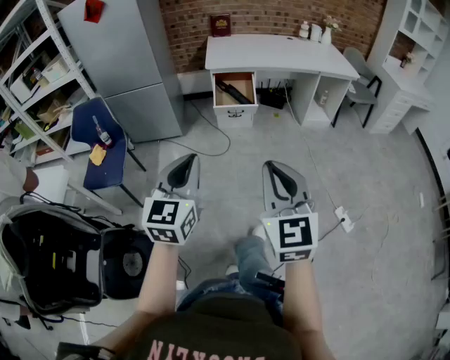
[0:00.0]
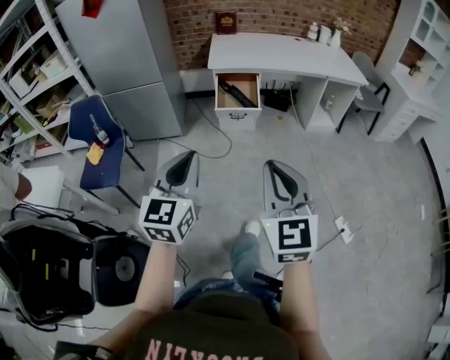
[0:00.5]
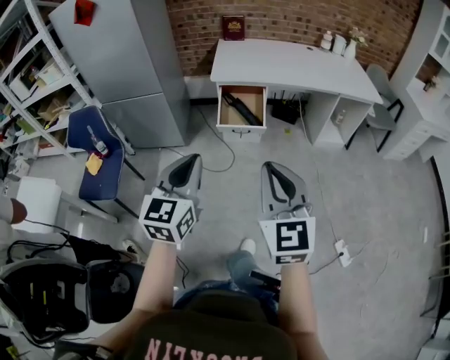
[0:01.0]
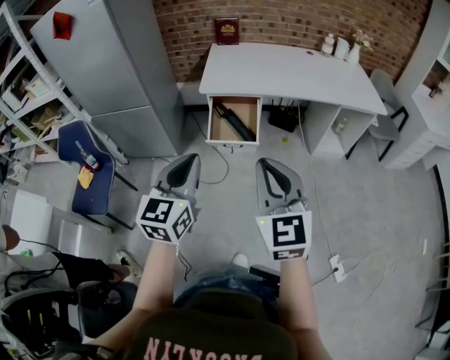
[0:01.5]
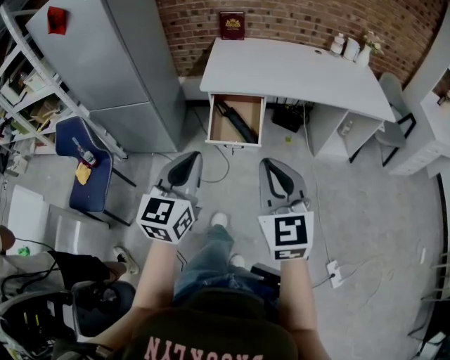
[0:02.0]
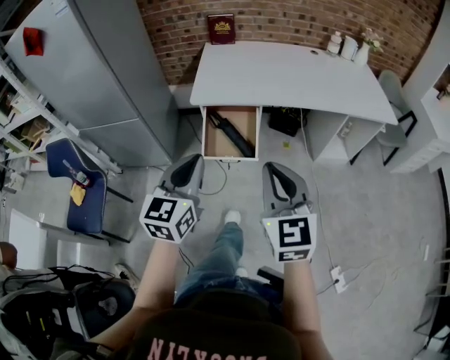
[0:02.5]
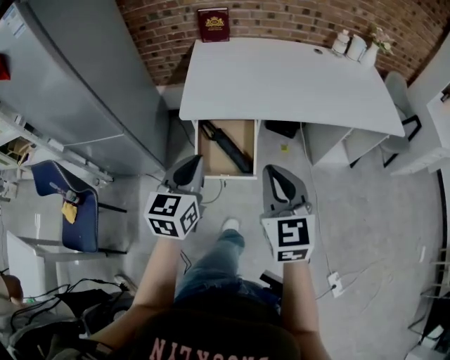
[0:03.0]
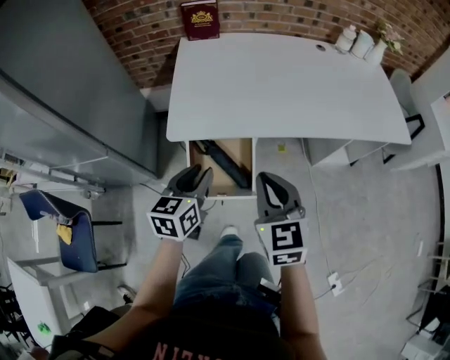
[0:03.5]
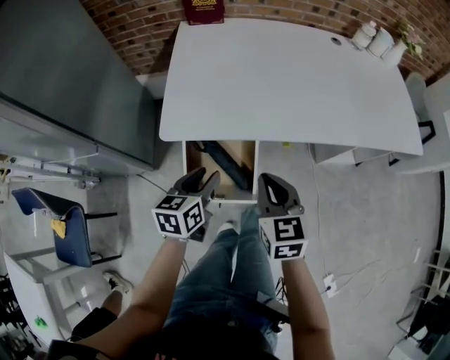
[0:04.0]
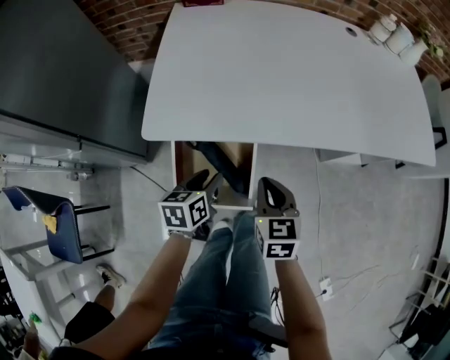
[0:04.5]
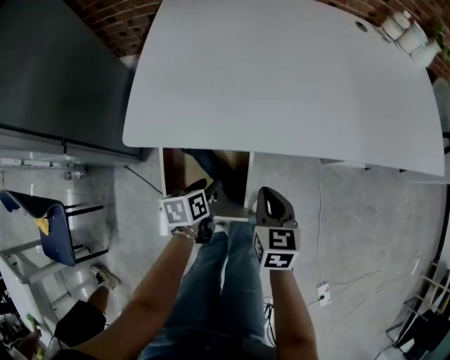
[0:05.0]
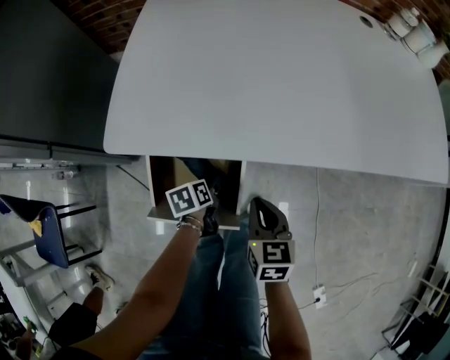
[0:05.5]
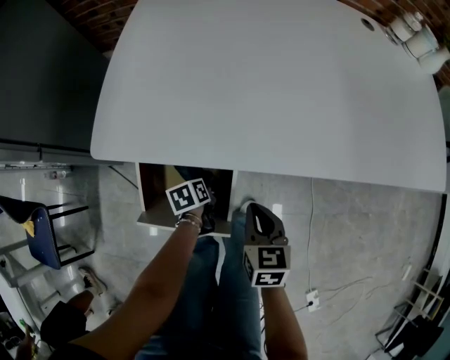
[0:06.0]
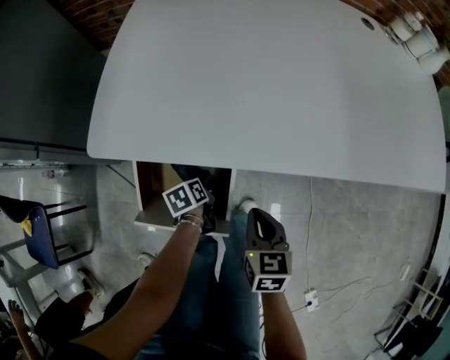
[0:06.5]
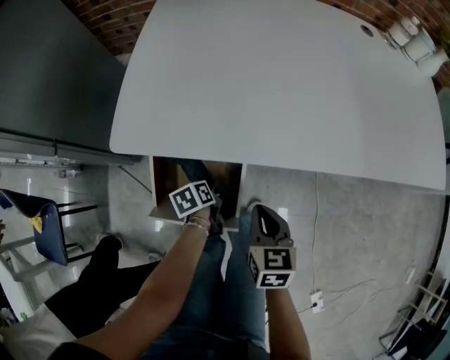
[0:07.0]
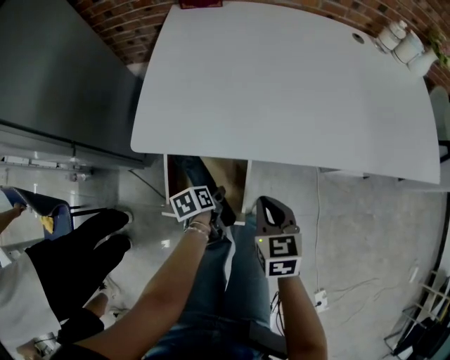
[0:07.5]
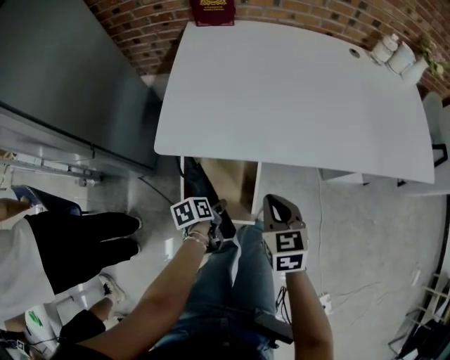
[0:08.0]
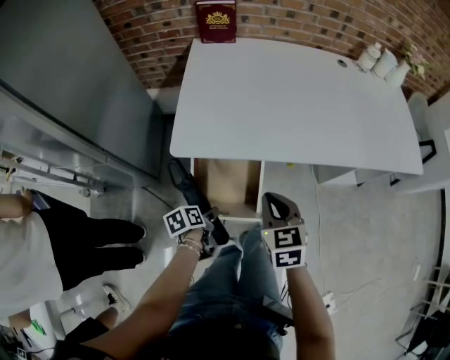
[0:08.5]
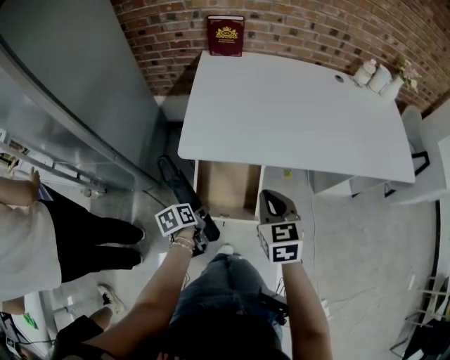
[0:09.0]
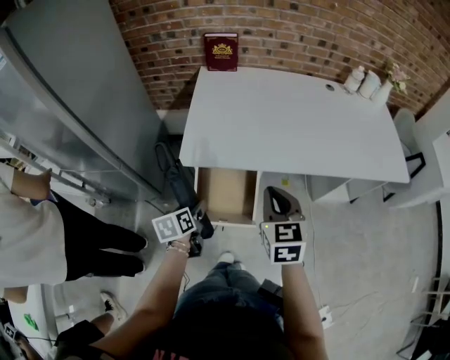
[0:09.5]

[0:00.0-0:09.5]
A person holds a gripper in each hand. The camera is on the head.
0:00.0 to 0:02.0: Both grippers travel together forward, about 40 cm.
0:02.0 to 0:04.0: The pair of grippers is taken forward, some 40 cm. Both grippers move downward, roughly 25 cm. The left gripper swivels some 40 degrees, and opens up. The right gripper turns by approximately 30 degrees.
0:04.0 to 0:05.5: Both grippers move downward, some 25 cm. The left gripper turns by approximately 40 degrees, and opens its fingers.
0:05.5 to 0:07.5: Both grippers travel together upward, about 5 cm.
0:07.5 to 0:09.5: The right gripper is displaced upward by roughly 20 cm, while the left gripper travels upward and to the left by about 25 cm, and swivels about 30 degrees.

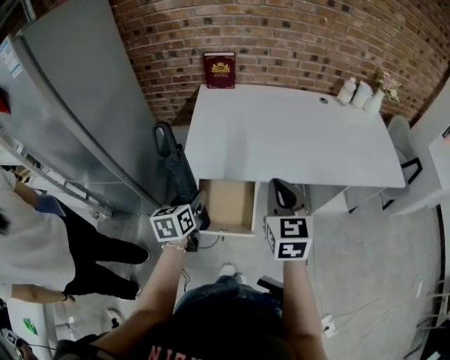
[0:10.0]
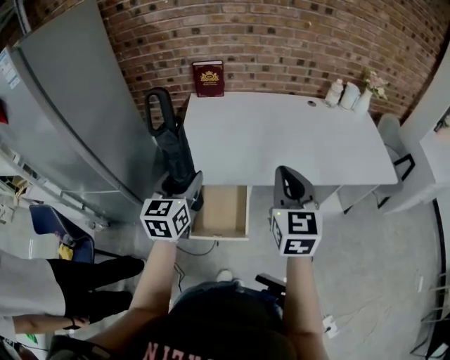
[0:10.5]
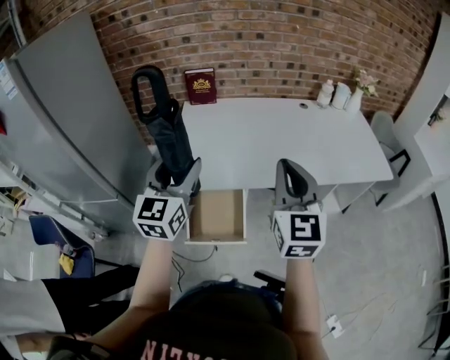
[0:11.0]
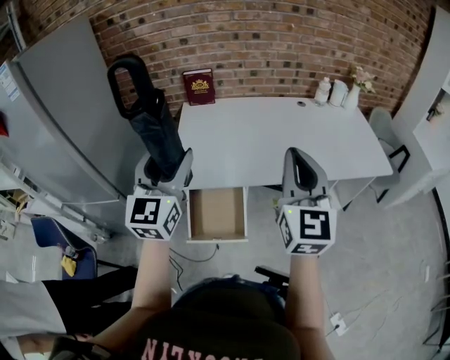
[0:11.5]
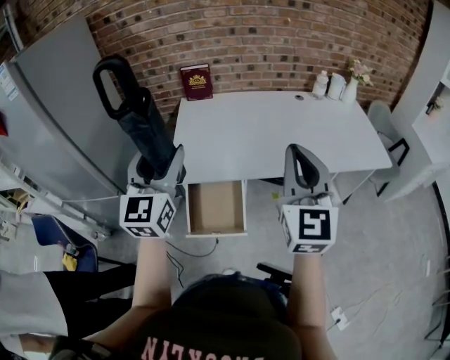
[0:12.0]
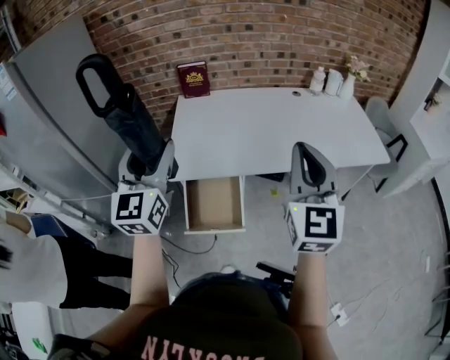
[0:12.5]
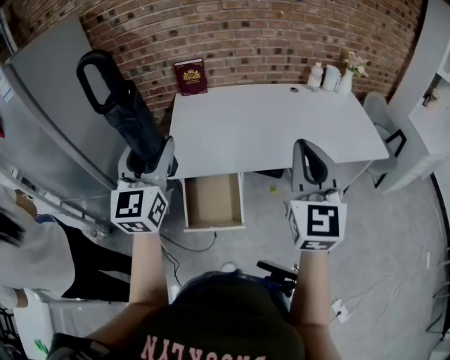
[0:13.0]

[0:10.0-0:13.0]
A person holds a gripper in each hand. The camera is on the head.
0:10.0 to 0:11.5: The right gripper moves upward and to the right, about 15 cm, and swivels about 30 degrees. The left gripper travels upward by some 25 cm, and tips its fingers upward by roughly 40 degrees.
0:11.5 to 0:13.0: The grippers move only a little.

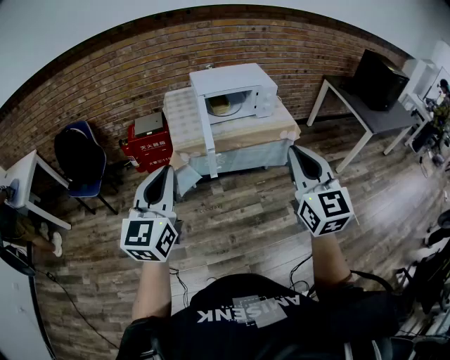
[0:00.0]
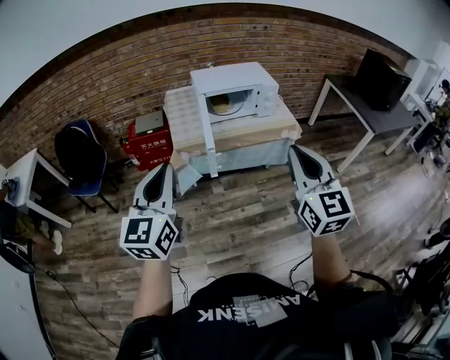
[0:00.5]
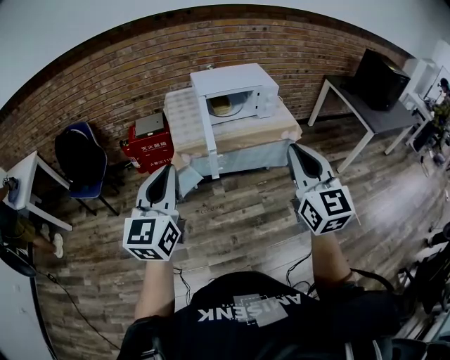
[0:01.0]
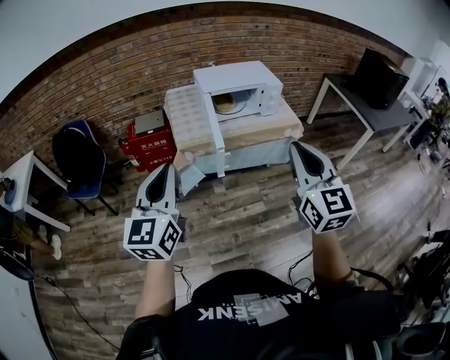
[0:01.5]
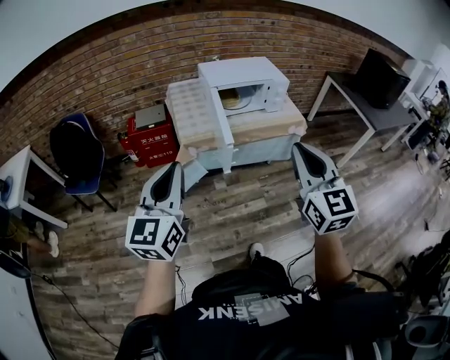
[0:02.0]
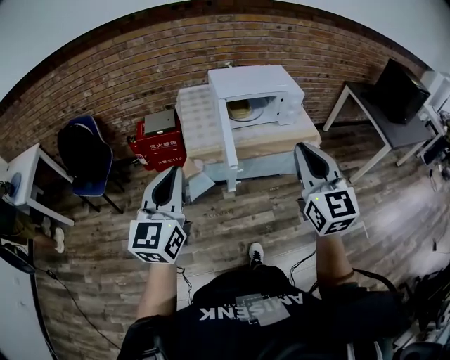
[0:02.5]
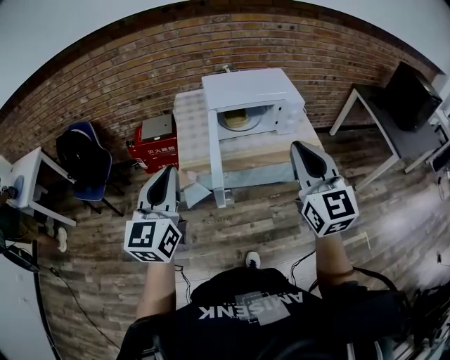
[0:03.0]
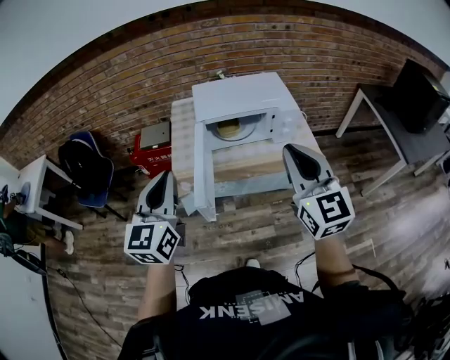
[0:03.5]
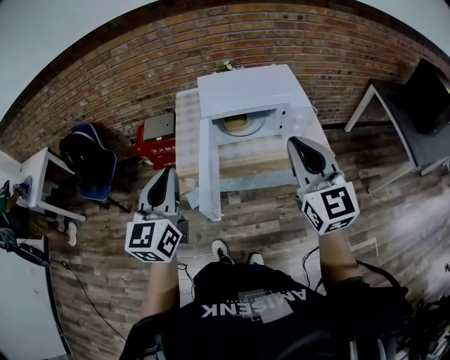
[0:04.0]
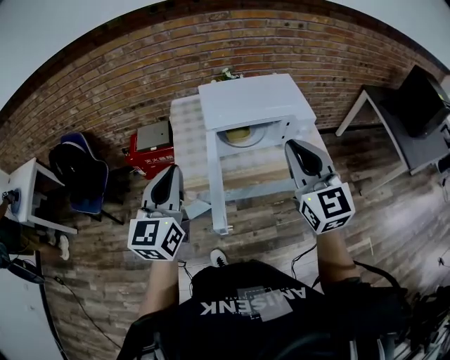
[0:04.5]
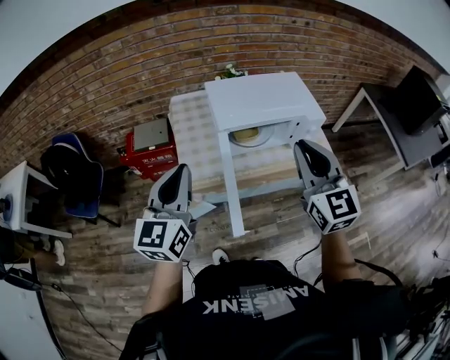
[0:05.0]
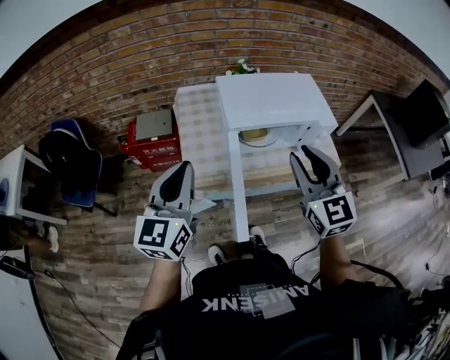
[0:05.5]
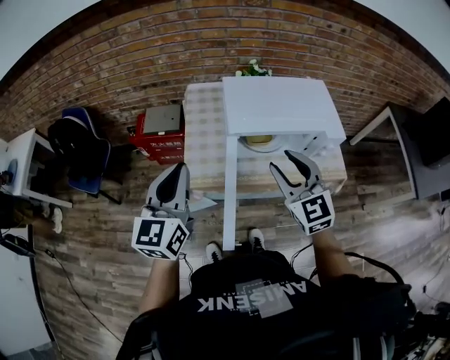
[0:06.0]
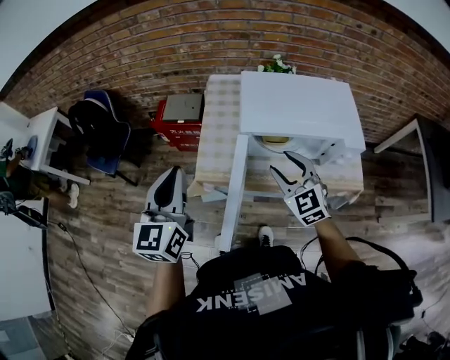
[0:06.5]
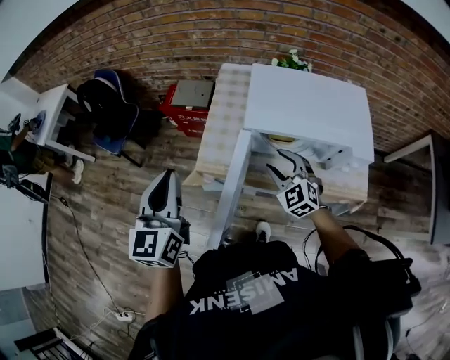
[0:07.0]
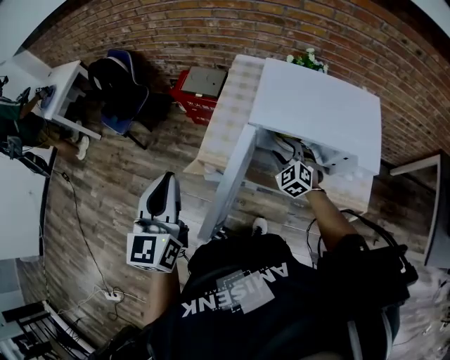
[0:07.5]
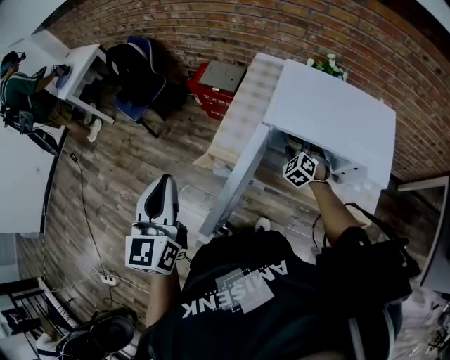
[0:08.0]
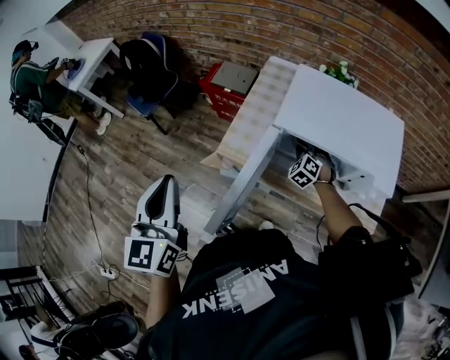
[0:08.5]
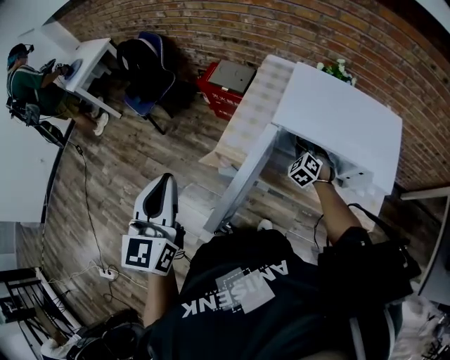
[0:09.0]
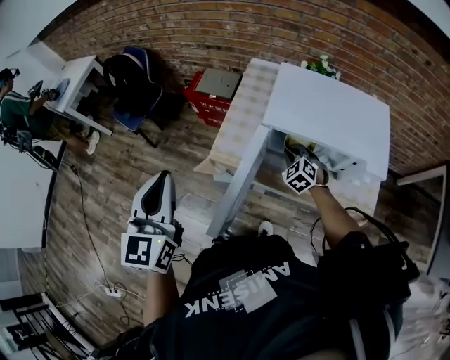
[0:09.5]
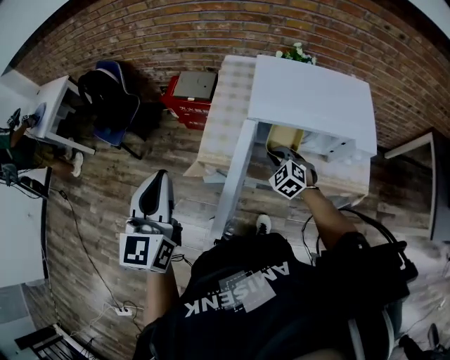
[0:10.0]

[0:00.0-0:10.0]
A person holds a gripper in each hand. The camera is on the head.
0:00.0 to 0:02.0: Both grippers travel together to the left, approximately 10 cm.
0:02.0 to 0:04.0: Both grippers move forward and to the right, about 35 cm.
0:04.0 to 0:06.0: The left gripper travels forward and to the left by some 15 cm. Meanwhile the right gripper is displaced forward, to the left and downward by about 25 cm, and opens its fingers.
0:06.0 to 0:08.0: The right gripper goes approximately 35 cm downward and forward, and tilts its fingers roughly 30 degrees downward; the left gripper travels backward by roughly 10 cm, and turns by some 40 degrees.
0:08.0 to 0:10.0: The right gripper shifts approximately 10 cm backward and to the left, and closes.

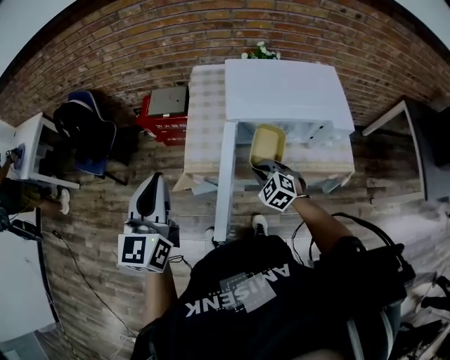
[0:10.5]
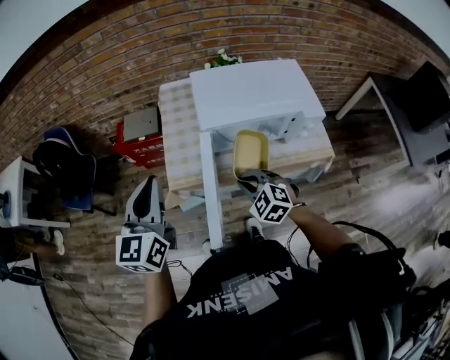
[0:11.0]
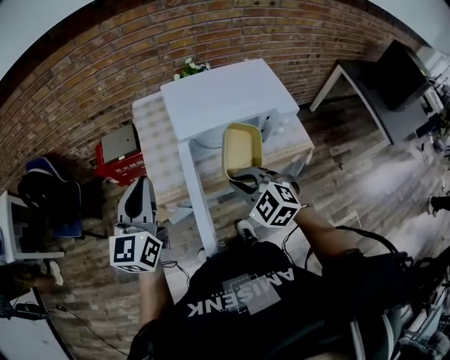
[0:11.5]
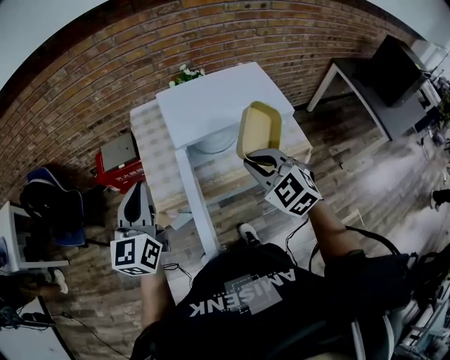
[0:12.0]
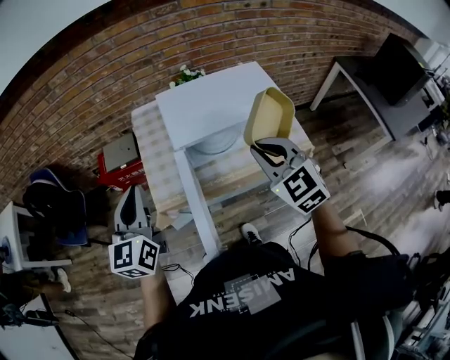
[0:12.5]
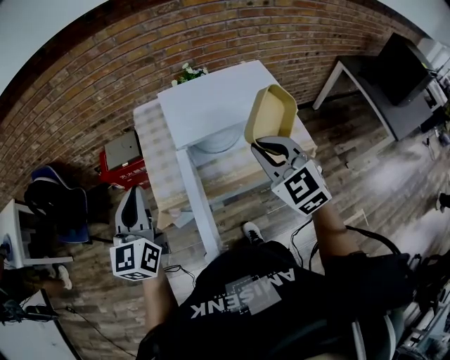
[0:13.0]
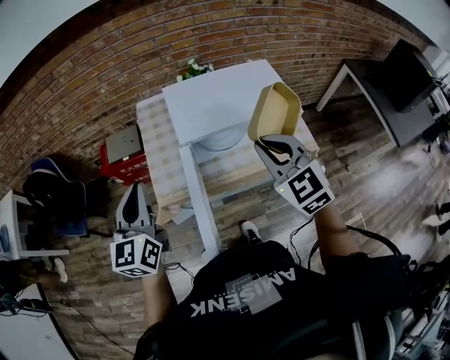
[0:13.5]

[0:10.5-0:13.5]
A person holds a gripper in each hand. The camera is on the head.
0:10.5 to 0:12.0: The left gripper shifts approximately 10 cm forward and to the right. The right gripper heads upward, covering about 20 cm, and changes its angle by some 20 degrees.
0:12.0 to 0:13.5: The right gripper goes some 5 cm upward.
